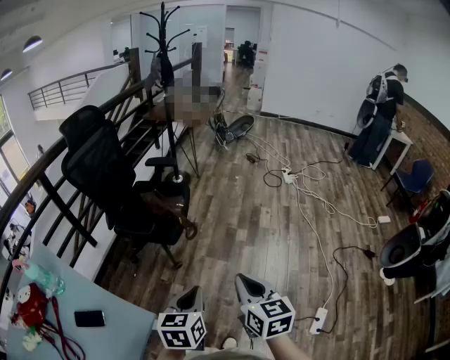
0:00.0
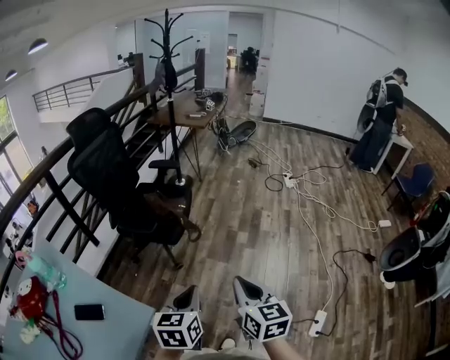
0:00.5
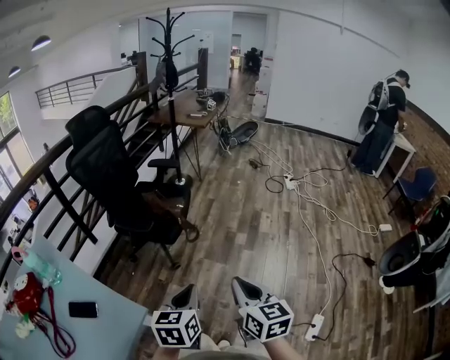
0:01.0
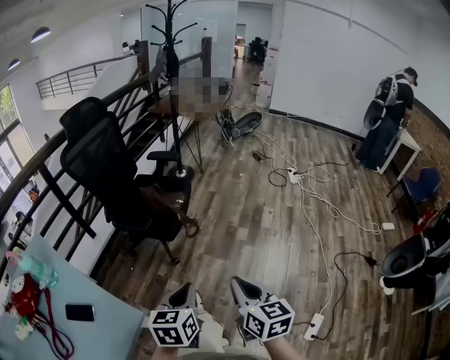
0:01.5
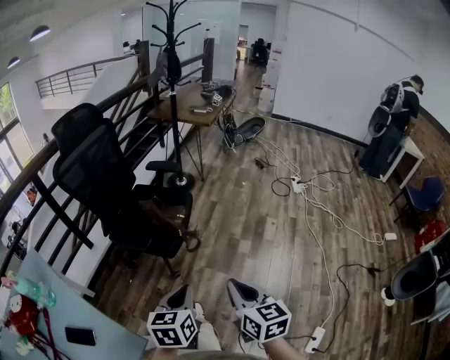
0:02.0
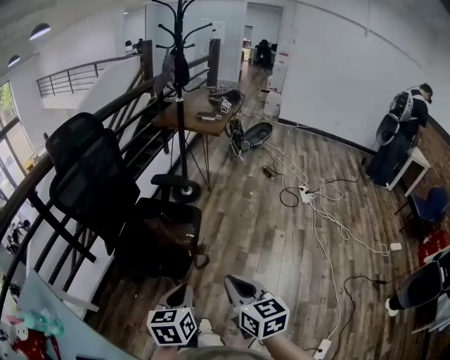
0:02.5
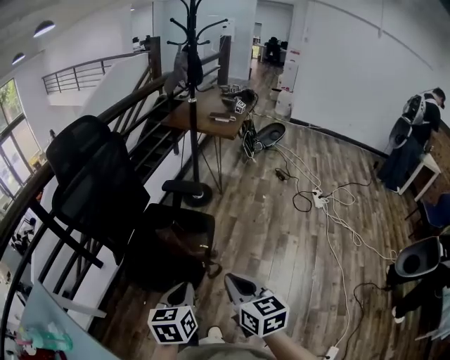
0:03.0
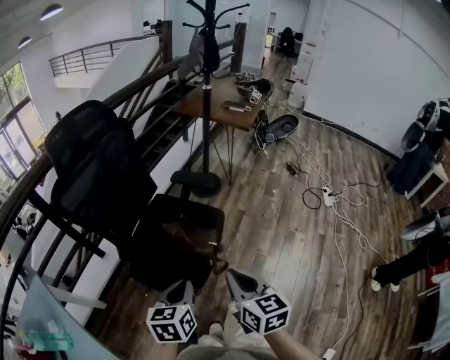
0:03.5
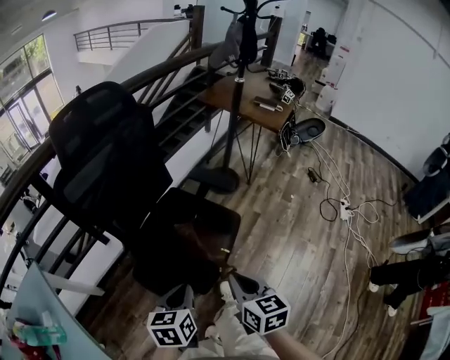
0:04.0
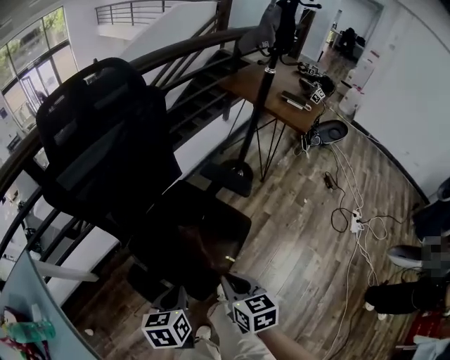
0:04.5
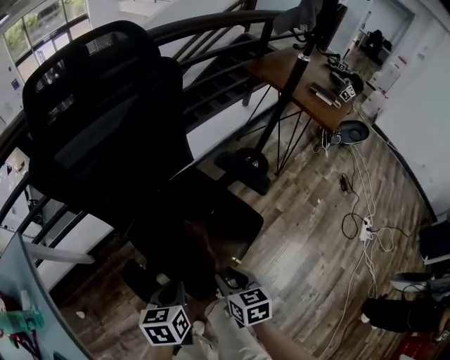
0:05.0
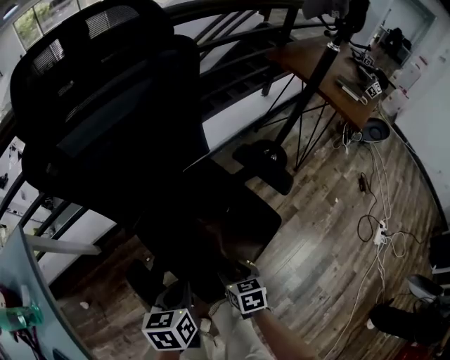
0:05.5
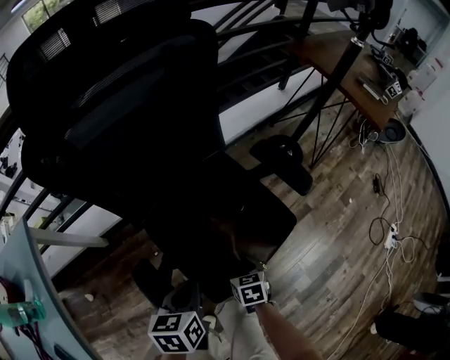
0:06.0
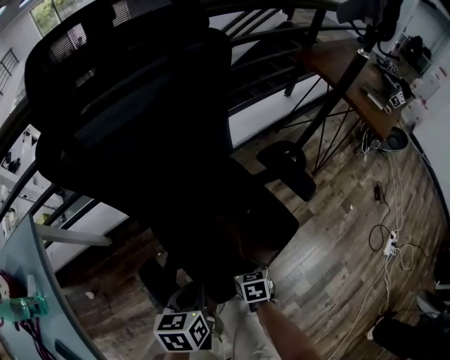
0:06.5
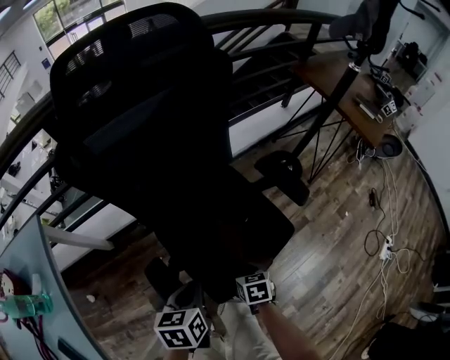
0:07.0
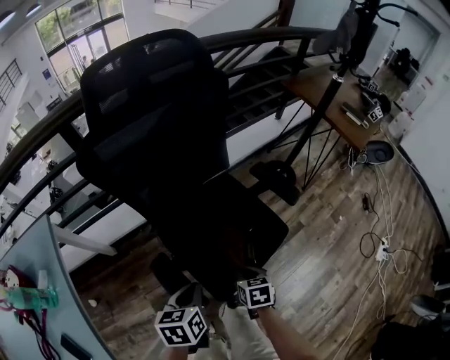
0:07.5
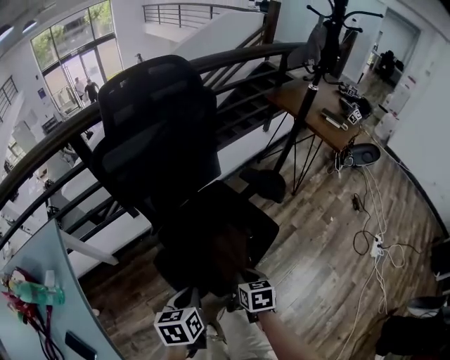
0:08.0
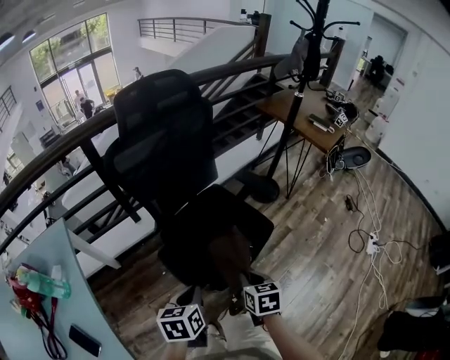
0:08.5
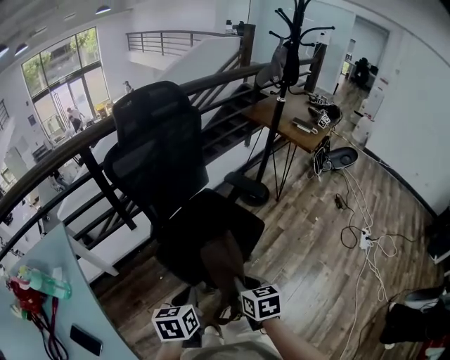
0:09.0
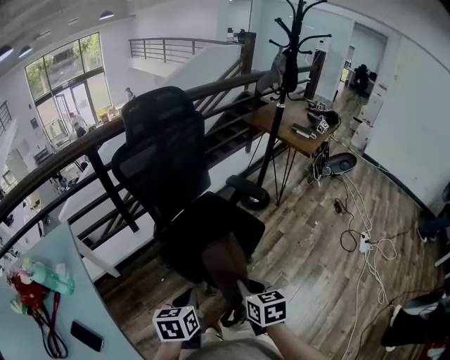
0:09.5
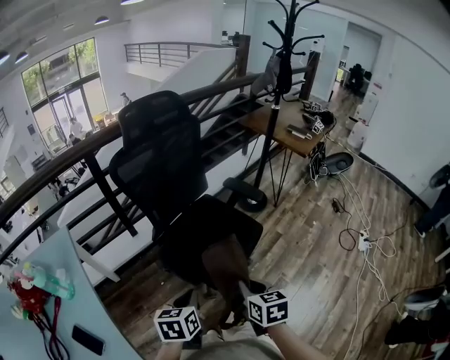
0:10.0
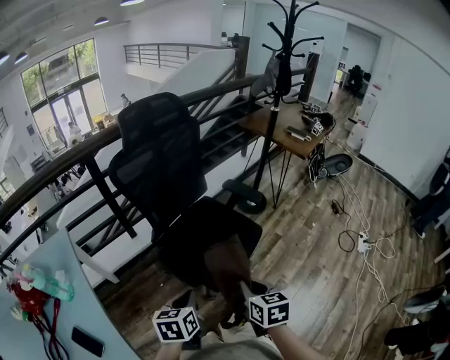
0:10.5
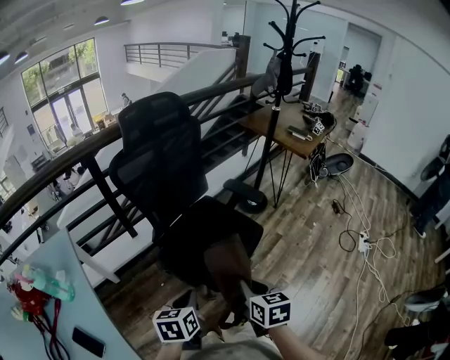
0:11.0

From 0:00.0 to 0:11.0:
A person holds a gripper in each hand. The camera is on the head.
From 0:00.0 to 0:02.0: Both grippers travel together forward, roughly 10 cm.
From 0:02.0 to 0:03.5: The right gripper moves forward, some 30 cm. The left gripper goes approximately 30 cm forward and to the left.
From 0:03.5 to 0:05.5: The left gripper is displaced downward by roughly 20 cm, and rotates approximately 30 degrees; the right gripper travels downward by some 35 cm, rotates approximately 40 degrees, and opens its fingers.
From 0:05.5 to 0:07.5: Both grippers move upward, roughly 5 cm. The right gripper closes its fingers.
From 0:07.5 to 0:09.0: The left gripper shifts about 15 cm backward and upward; the right gripper goes approximately 25 cm upward and backward.
From 0:09.0 to 0:11.0: The right gripper shifts by approximately 5 cm.

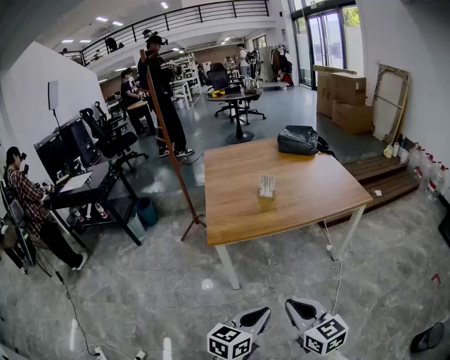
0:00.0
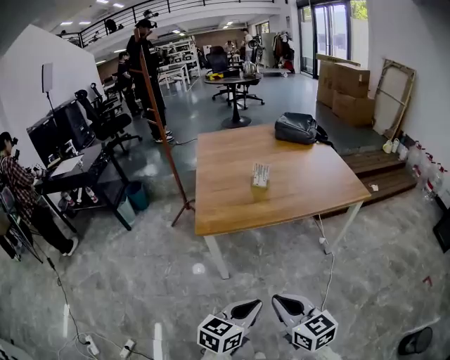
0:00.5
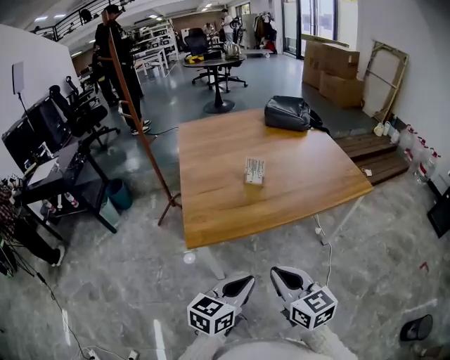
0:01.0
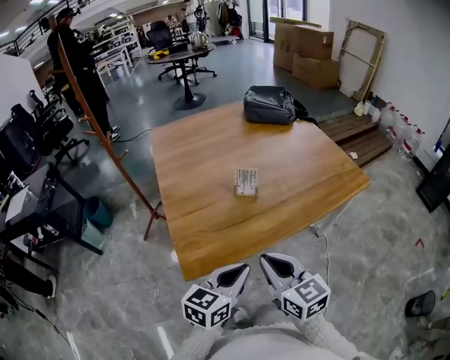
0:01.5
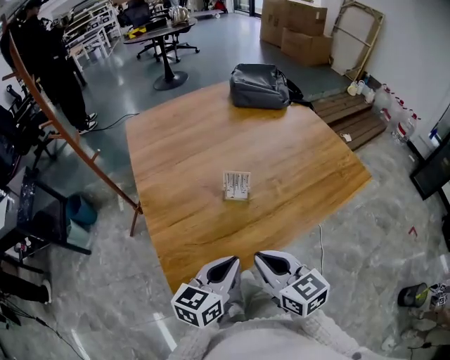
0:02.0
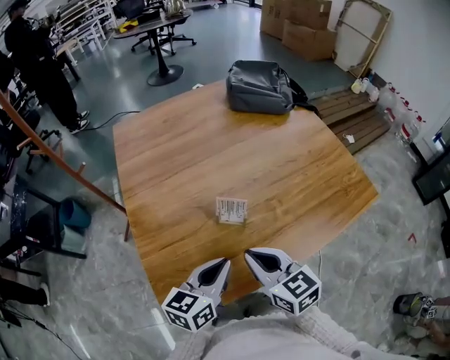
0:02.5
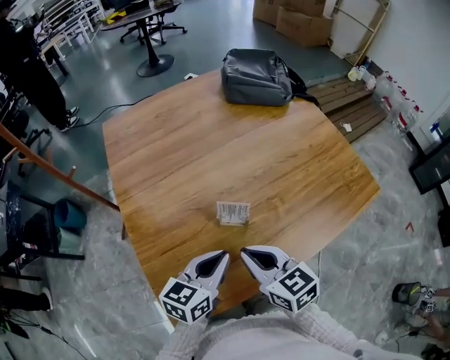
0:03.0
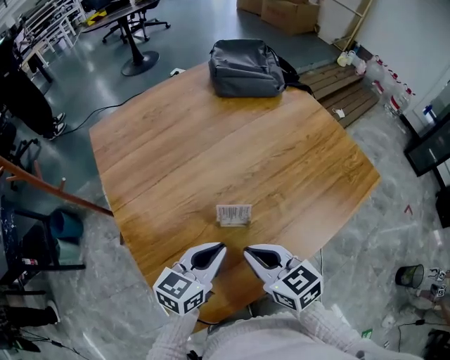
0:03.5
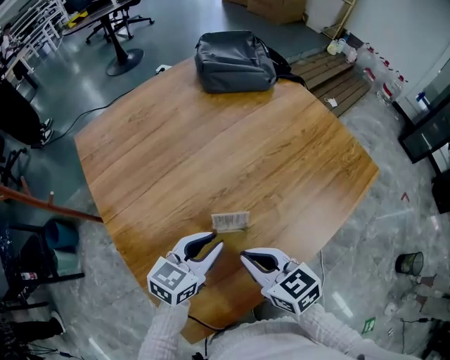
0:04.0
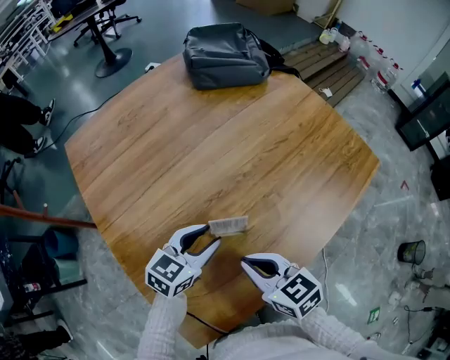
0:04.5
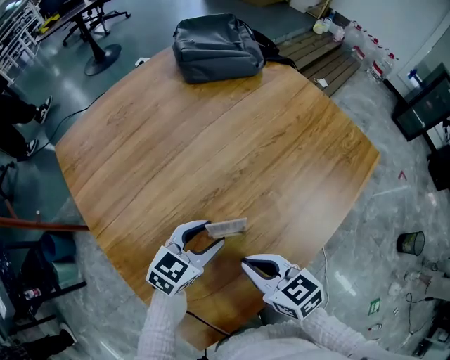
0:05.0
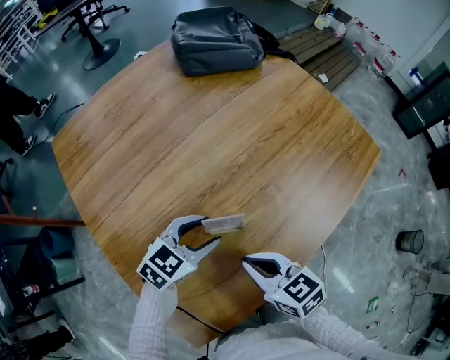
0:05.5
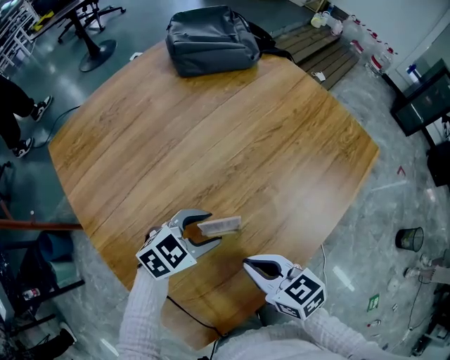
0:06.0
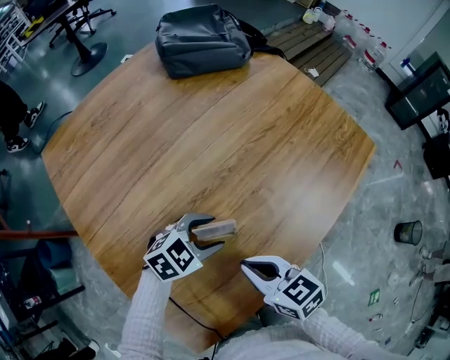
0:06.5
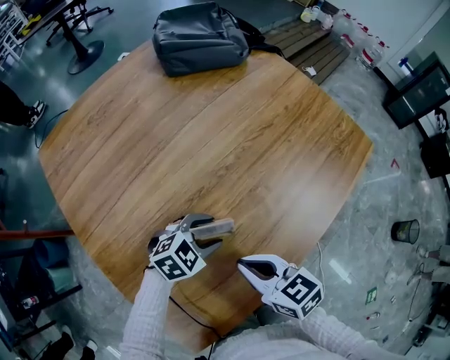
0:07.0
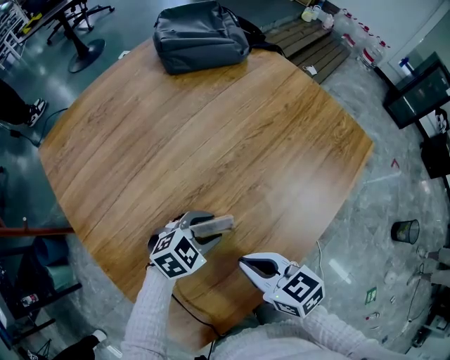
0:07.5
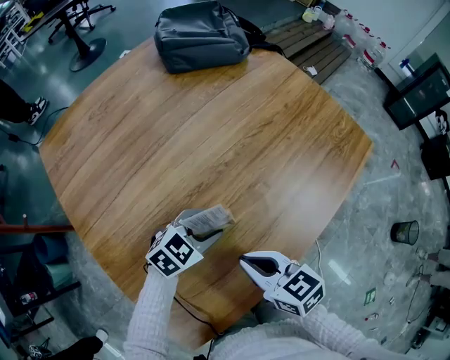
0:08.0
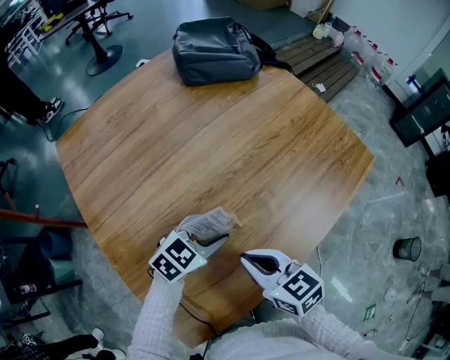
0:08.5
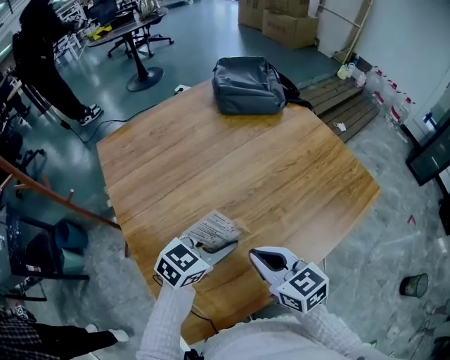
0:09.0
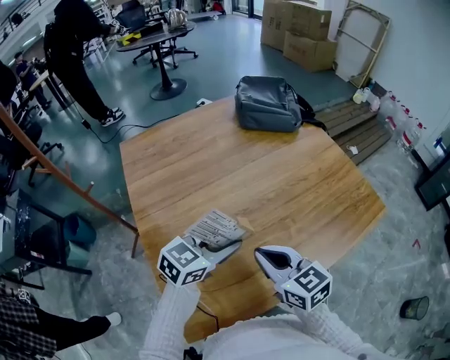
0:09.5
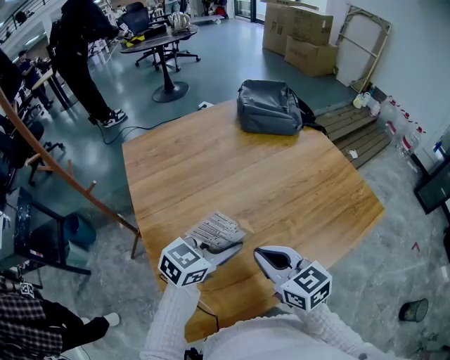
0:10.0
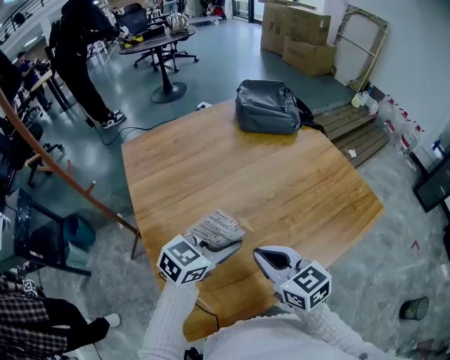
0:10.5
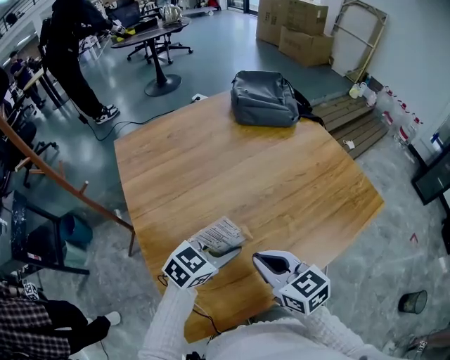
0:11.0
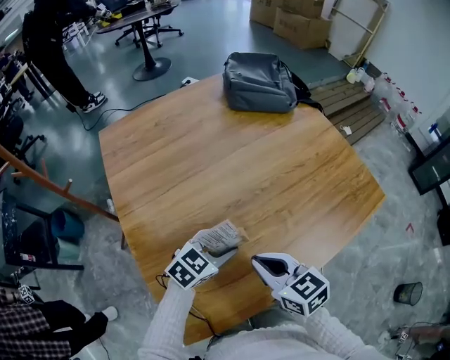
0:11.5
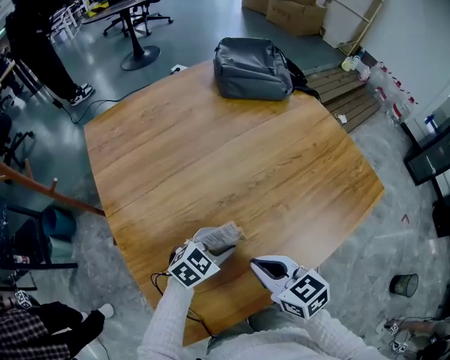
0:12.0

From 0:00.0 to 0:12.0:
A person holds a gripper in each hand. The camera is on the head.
From 0:00.0 to 0:02.0: The two grippers travel together, forward, roughly 50 cm.
From 0:02.0 to 0:04.0: The two grippers go some 20 cm forward. The left gripper turns by about 20 degrees.
From 0:04.0 to 0:06.0: The left gripper moves downward, roughly 5 cm, rotates roughly 40 degrees, and opens up; the right gripper changes place by roughly 5 cm.
From 0:06.0 to 0:08.0: The grippers make only small movements.
From 0:08.0 to 0:10.0: The grippers both shift upward by about 15 cm. The left gripper swivels approximately 30 degrees. Meanwhile the right gripper rotates approximately 20 degrees.
From 0:10.0 to 0:12.0: The left gripper travels downward by some 15 cm, and rotates about 20 degrees. The right gripper travels downward by approximately 10 cm.

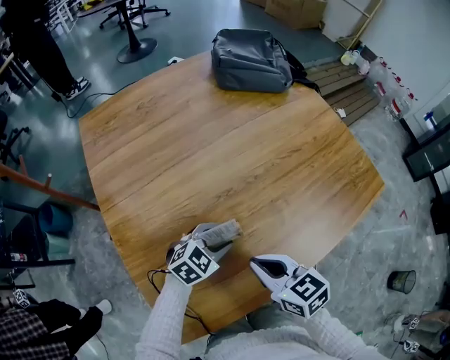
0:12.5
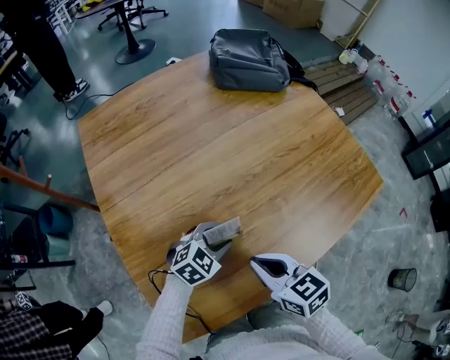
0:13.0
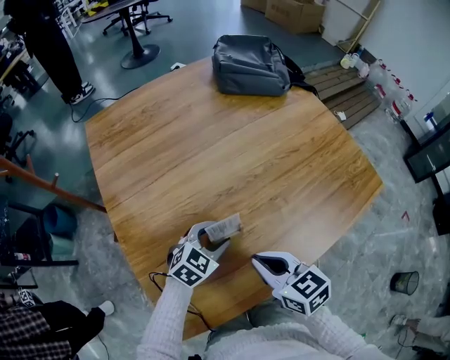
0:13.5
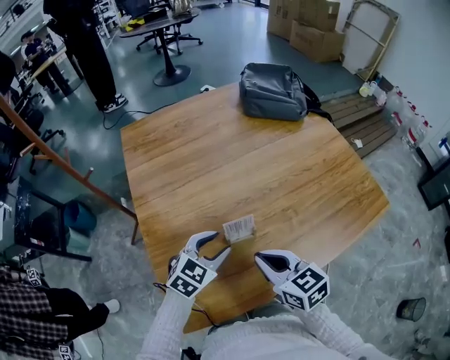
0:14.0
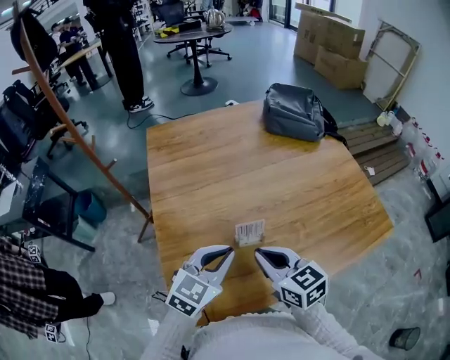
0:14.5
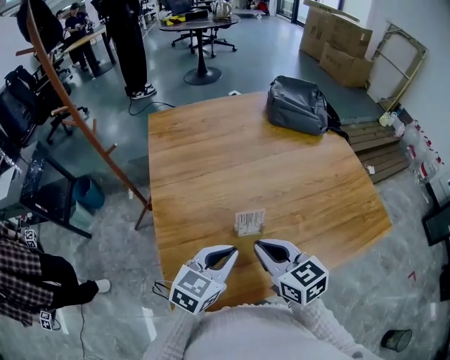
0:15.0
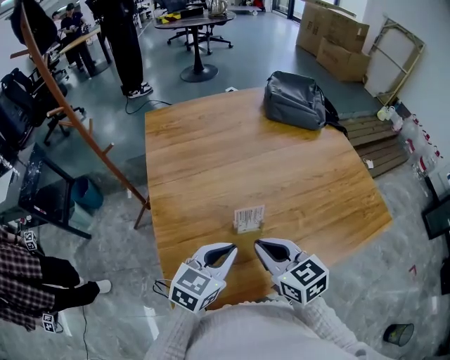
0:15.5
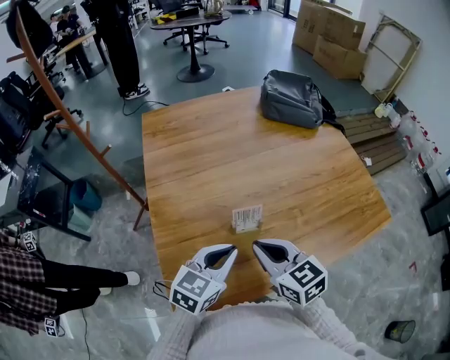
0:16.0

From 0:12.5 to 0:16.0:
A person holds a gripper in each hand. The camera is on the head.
From 0:12.5 to 0:14.5: The left gripper heads upward and backward, covering approximately 20 cm, rotates some 40 degrees, and closes up, while the right gripper heads upward, covering roughly 10 cm.
From 0:14.5 to 0:16.0: The grippers move only a little.
